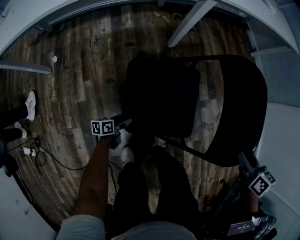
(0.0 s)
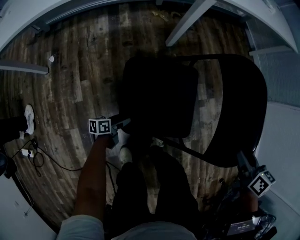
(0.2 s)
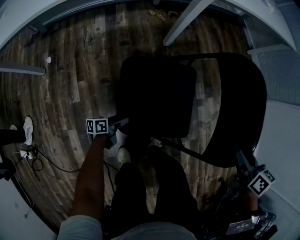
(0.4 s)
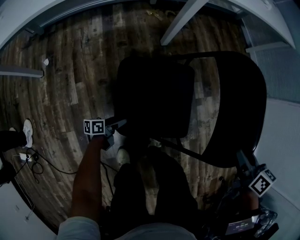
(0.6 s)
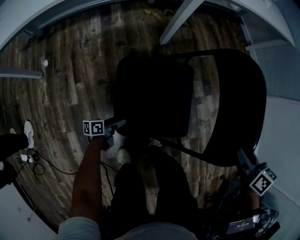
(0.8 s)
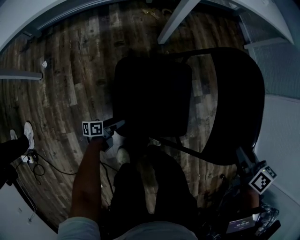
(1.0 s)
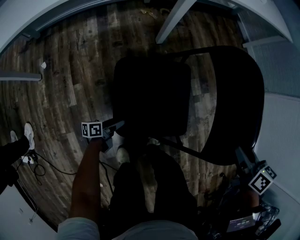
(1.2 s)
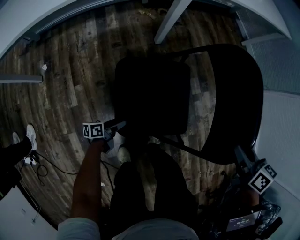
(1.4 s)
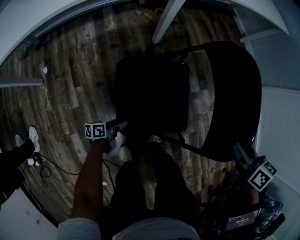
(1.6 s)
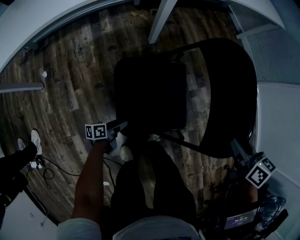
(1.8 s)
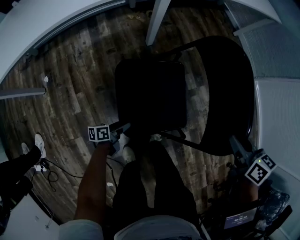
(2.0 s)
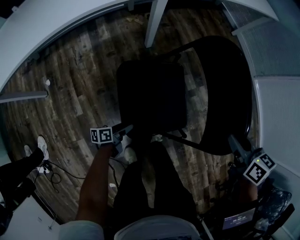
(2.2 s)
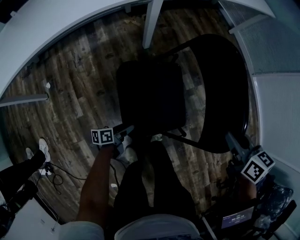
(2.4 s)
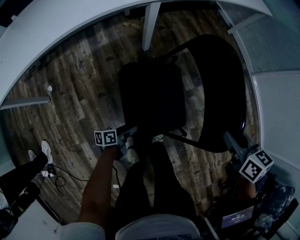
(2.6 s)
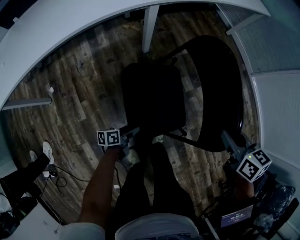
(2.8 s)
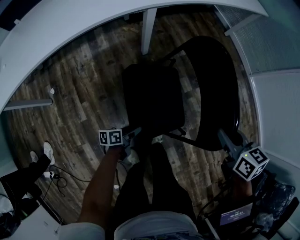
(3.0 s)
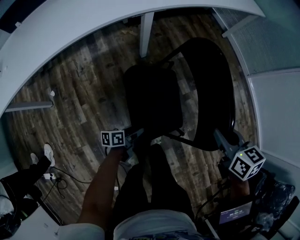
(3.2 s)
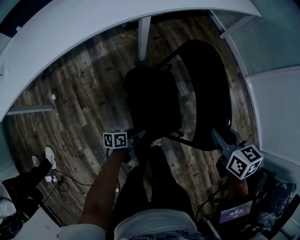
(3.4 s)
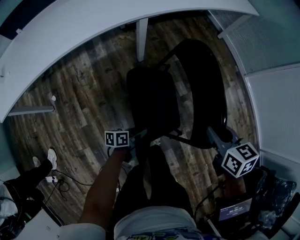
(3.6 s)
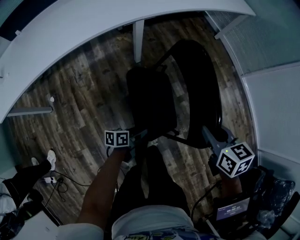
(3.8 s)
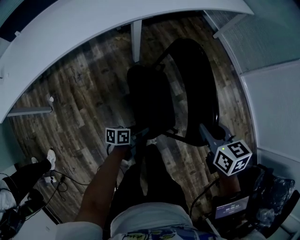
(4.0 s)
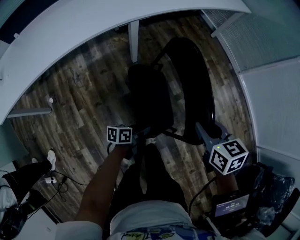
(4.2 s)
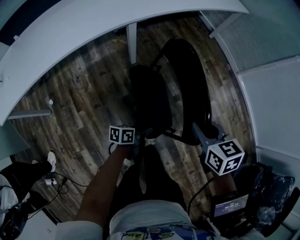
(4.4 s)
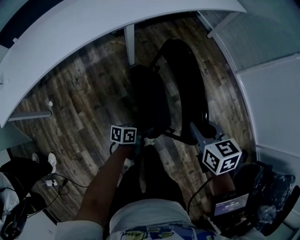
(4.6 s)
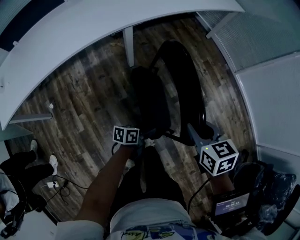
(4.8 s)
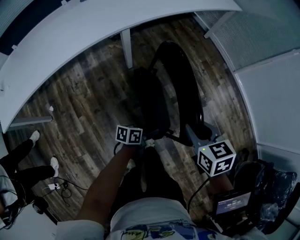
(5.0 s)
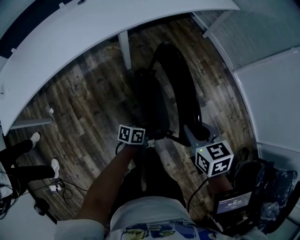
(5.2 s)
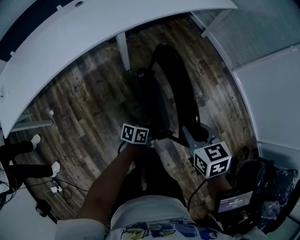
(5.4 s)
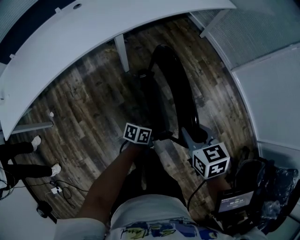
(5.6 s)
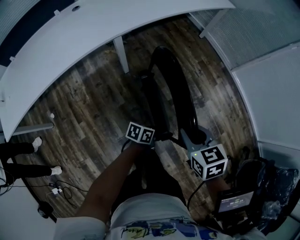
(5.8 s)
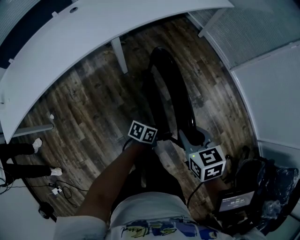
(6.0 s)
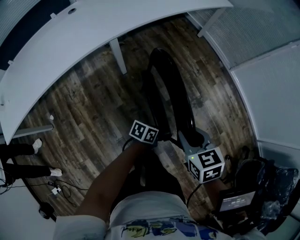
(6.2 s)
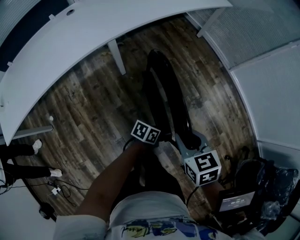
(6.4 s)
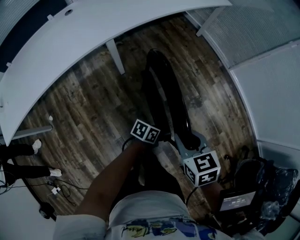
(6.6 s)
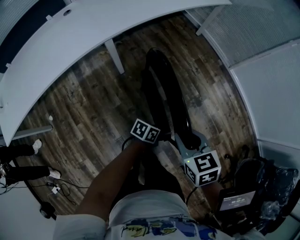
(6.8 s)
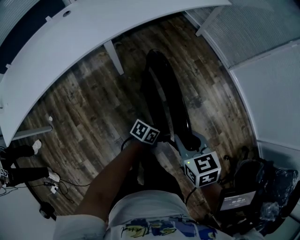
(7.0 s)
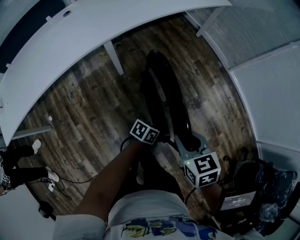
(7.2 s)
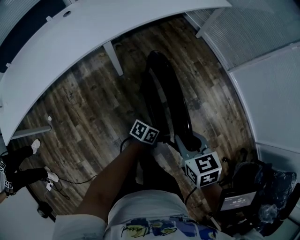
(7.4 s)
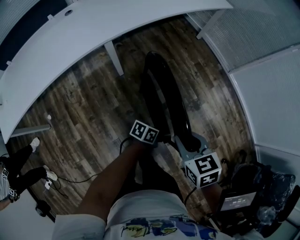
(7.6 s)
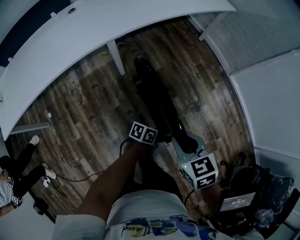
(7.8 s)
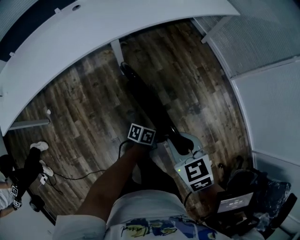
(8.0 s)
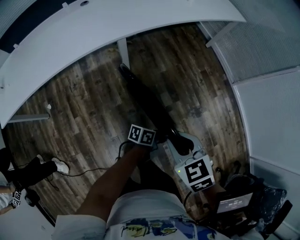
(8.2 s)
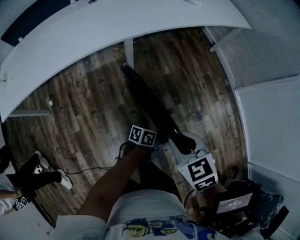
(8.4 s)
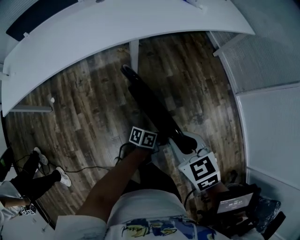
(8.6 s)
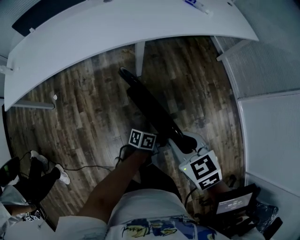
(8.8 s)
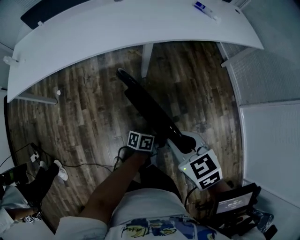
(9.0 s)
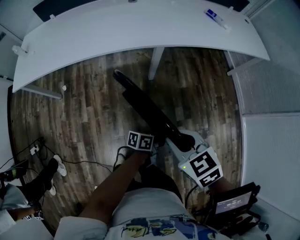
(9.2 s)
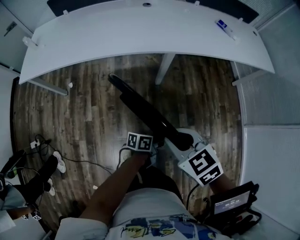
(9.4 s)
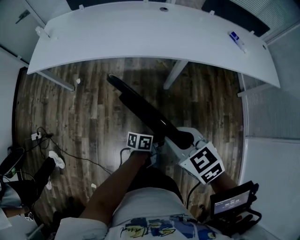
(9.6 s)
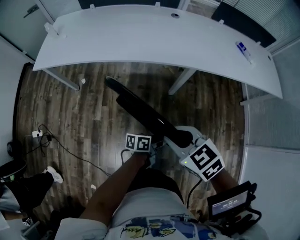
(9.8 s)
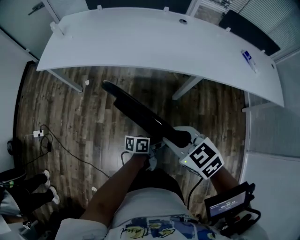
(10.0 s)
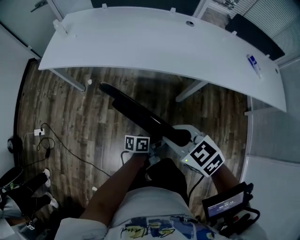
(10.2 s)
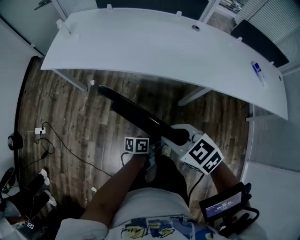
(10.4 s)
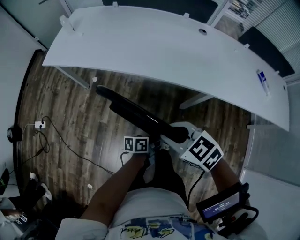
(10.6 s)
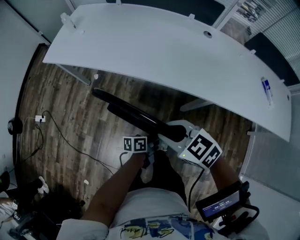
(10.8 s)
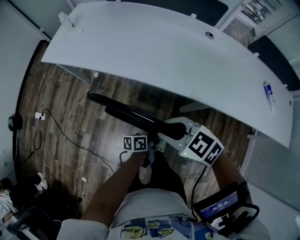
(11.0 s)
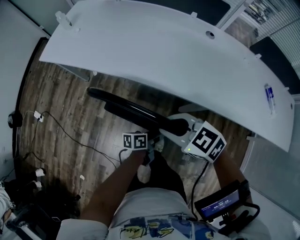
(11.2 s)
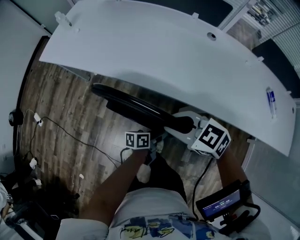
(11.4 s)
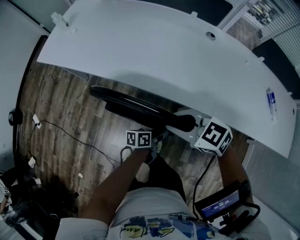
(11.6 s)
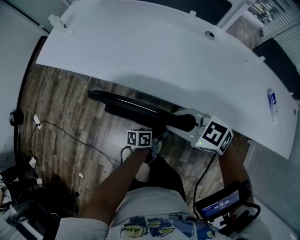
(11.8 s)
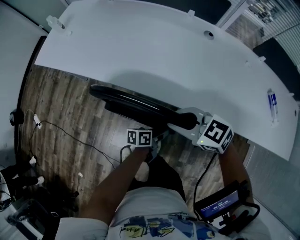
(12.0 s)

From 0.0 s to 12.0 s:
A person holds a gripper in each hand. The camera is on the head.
From 0.0 s to 1.6 s: The left gripper goes some 5 cm upward.
From 1.6 s to 3.0 s: The right gripper moves upward, approximately 5 cm. Meanwhile the left gripper shifts about 15 cm upward and to the right.
From 3.0 s to 4.4 s: The left gripper is displaced upward, to the right and forward by approximately 15 cm.
From 4.4 s to 6.0 s: The left gripper goes some 15 cm to the right and forward, and swivels some 20 degrees.
From 6.0 s to 7.6 s: The left gripper ends up roughly 5 cm from where it was.
From 7.6 s to 9.0 s: The right gripper moves some 15 cm, and swivels about 30 degrees. The left gripper shifts by approximately 10 cm, and swivels about 30 degrees.
From 9.0 s to 10.4 s: The right gripper changes place by approximately 30 cm, and rotates about 40 degrees; the left gripper changes place by about 30 cm, and changes its angle by roughly 30 degrees.
From 10.4 s to 12.0 s: The left gripper changes place by about 20 cm. Meanwhile the right gripper ends up some 25 cm from where it was, and swivels some 20 degrees.

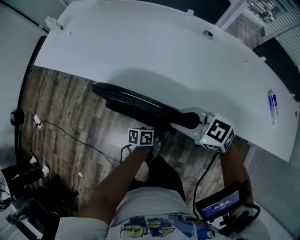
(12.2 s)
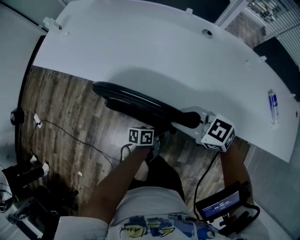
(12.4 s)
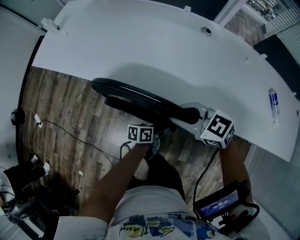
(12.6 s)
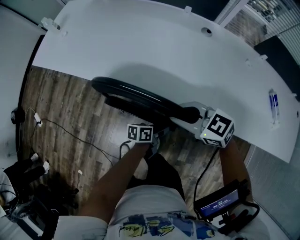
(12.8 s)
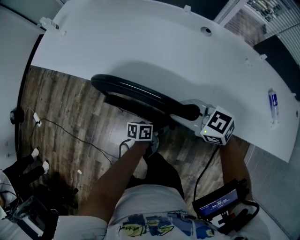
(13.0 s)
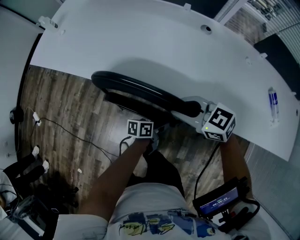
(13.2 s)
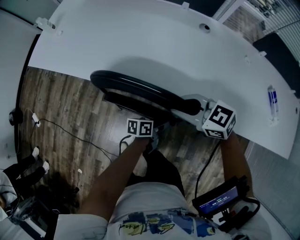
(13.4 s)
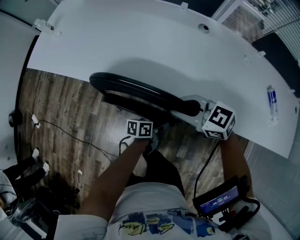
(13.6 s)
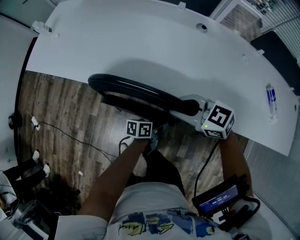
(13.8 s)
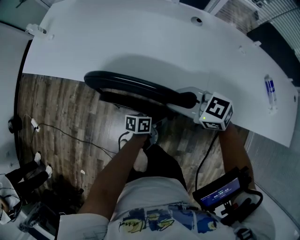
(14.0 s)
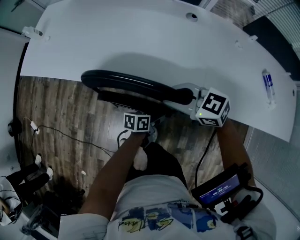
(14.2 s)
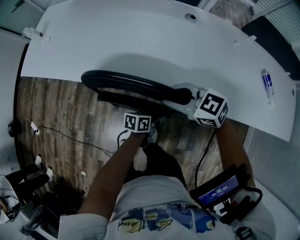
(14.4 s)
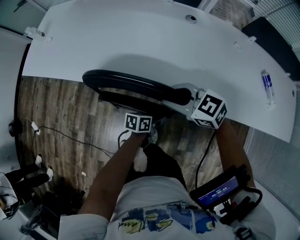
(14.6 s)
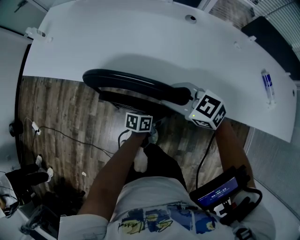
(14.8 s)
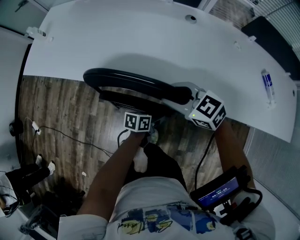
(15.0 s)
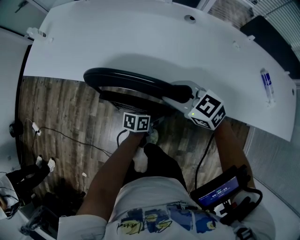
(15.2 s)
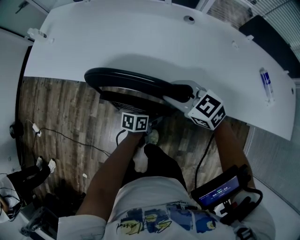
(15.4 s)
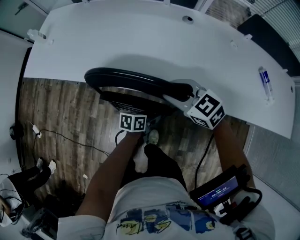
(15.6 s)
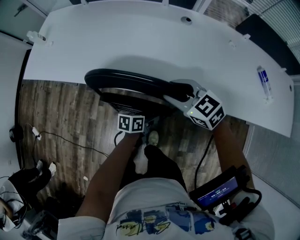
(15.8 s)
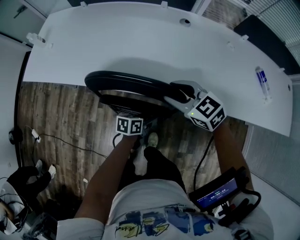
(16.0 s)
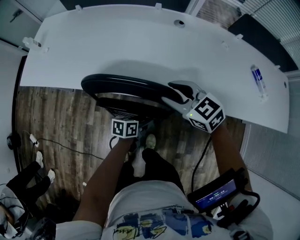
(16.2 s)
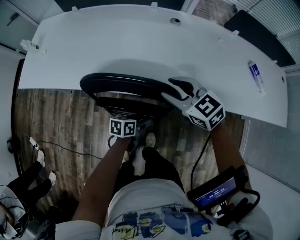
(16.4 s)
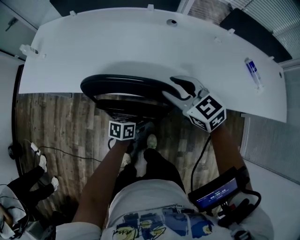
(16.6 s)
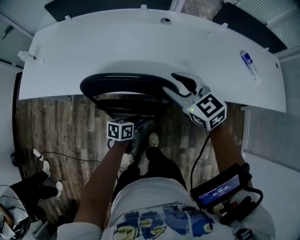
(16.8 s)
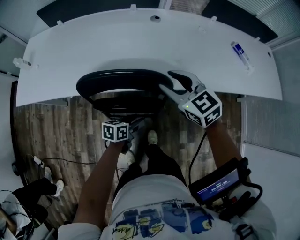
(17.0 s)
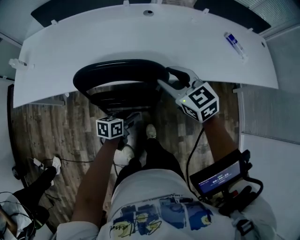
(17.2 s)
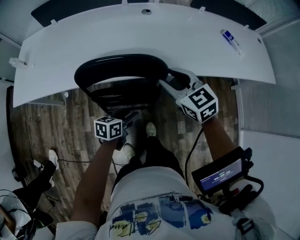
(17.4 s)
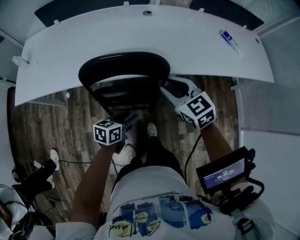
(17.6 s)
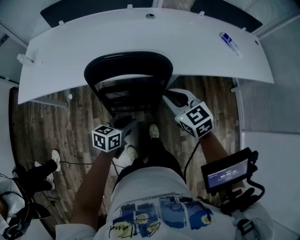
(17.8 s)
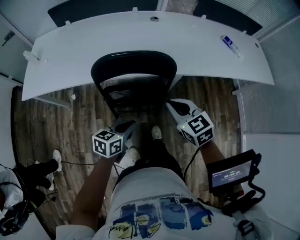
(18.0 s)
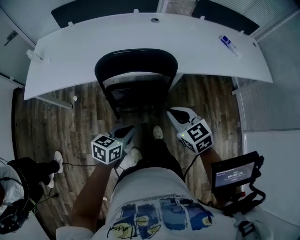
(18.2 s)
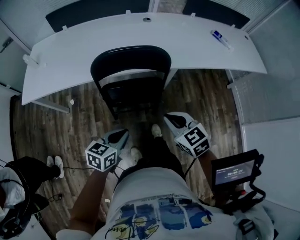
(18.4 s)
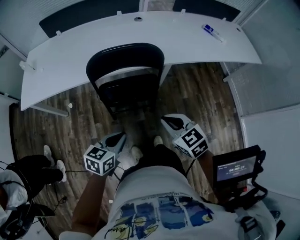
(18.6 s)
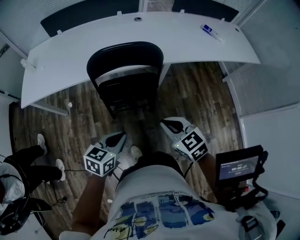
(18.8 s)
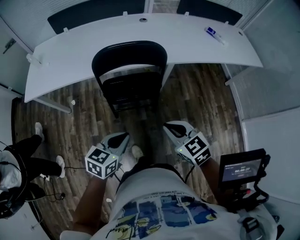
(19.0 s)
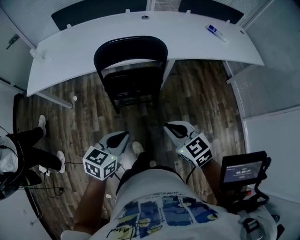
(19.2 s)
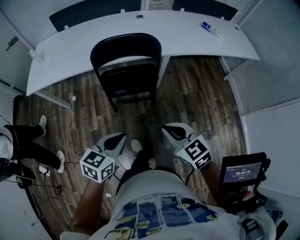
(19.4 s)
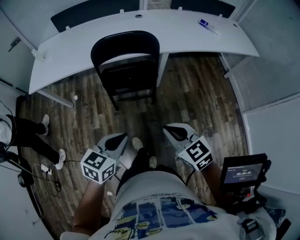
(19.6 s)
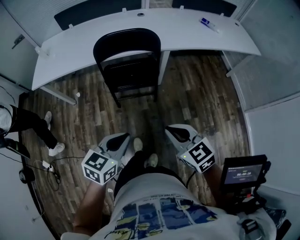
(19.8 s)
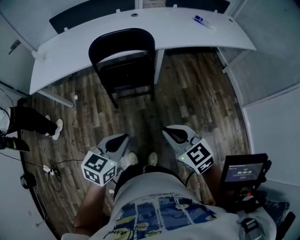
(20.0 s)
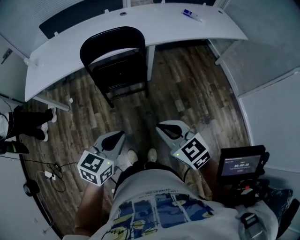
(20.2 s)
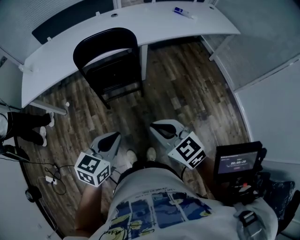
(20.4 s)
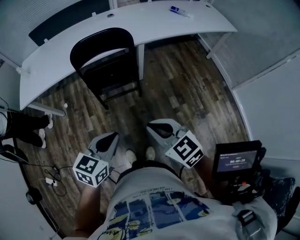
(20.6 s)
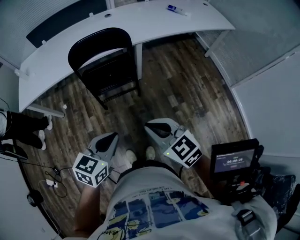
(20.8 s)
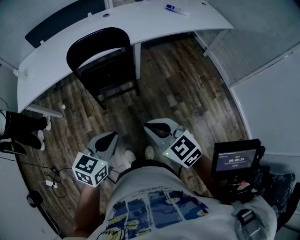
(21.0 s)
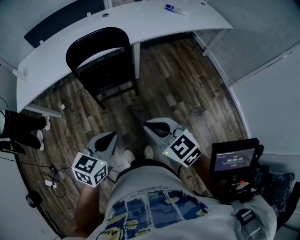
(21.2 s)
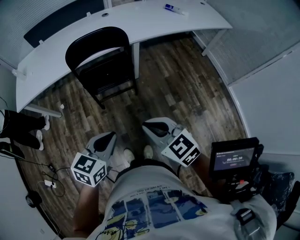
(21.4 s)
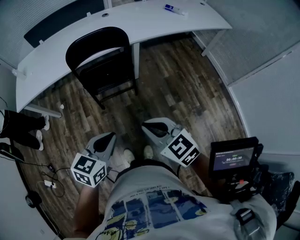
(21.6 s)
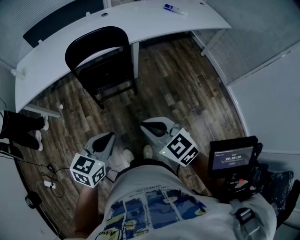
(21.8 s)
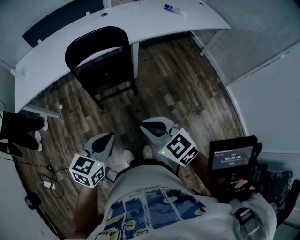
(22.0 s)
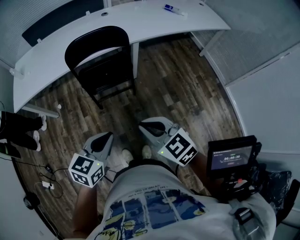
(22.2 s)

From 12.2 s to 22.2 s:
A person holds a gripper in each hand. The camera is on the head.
From 12.2 s to 13.6 s: The right gripper changes place by some 5 cm.
From 13.6 s to 15.0 s: The grippers move only a little.
From 15.0 s to 16.4 s: The left gripper changes place by some 5 cm.
From 16.4 s to 18.0 s: The left gripper shifts about 25 cm backward, upward and to the left, changes its angle by approximately 30 degrees, and closes up; the right gripper is displaced backward by about 20 cm, turns by approximately 30 degrees, and closes up.
From 18.0 s to 19.4 s: The left gripper heads backward and upward, covering about 25 cm; the right gripper is displaced backward by roughly 30 cm.
From 19.4 s to 20.8 s: Both grippers travel together backward, roughly 10 cm.
From 20.8 s to 22.2 s: The grippers make only small movements.

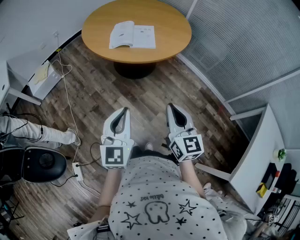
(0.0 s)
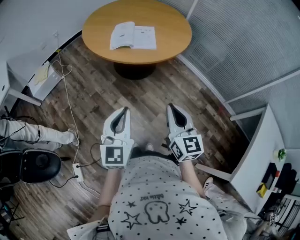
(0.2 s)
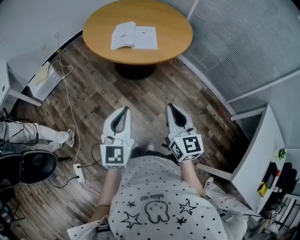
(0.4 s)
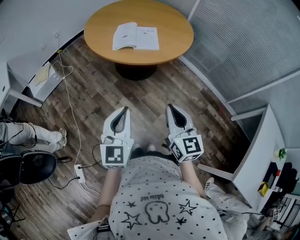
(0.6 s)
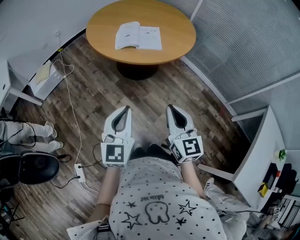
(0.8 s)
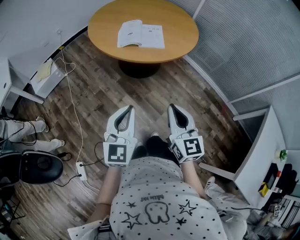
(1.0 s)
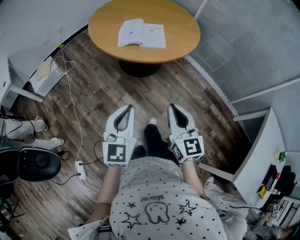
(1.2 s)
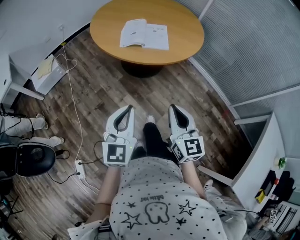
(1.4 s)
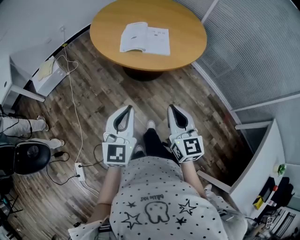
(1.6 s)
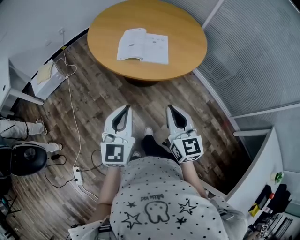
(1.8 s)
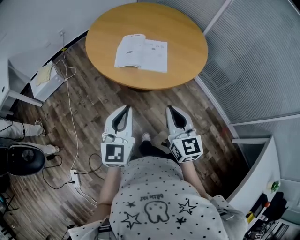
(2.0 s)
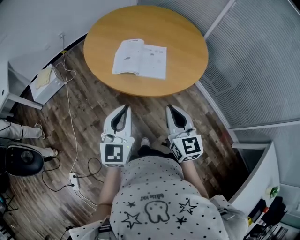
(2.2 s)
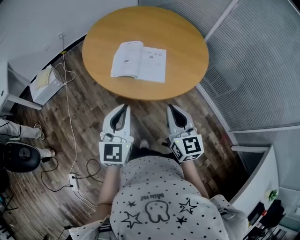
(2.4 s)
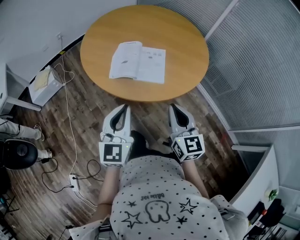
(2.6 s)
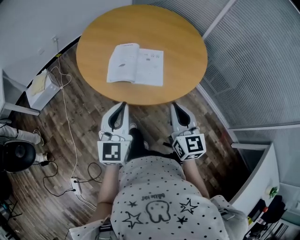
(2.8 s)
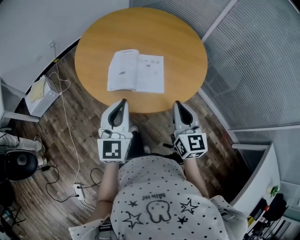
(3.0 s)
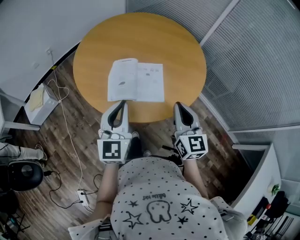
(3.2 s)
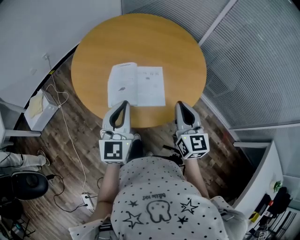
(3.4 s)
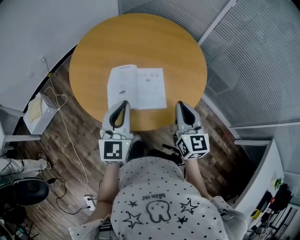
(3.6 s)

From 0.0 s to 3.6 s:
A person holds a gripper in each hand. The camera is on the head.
From 0.0 s to 1.8 s: Both grippers move forward, some 15 cm.
From 1.8 s to 3.6 s: The grippers both shift forward by approximately 35 cm.
